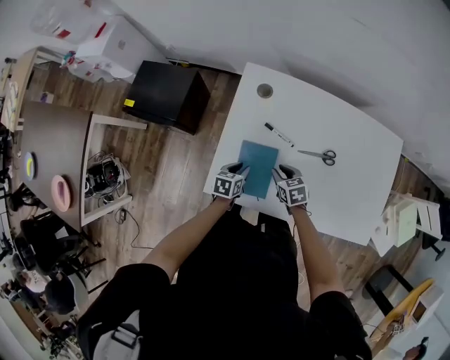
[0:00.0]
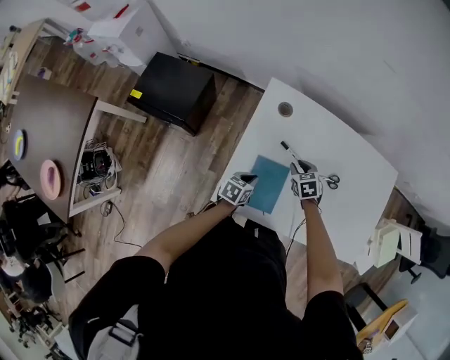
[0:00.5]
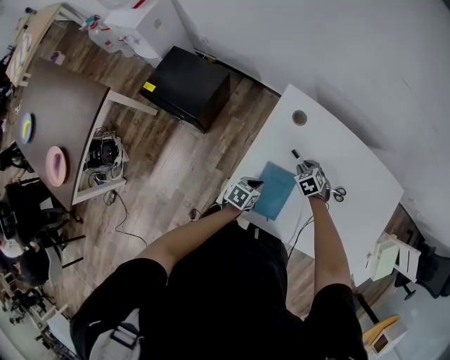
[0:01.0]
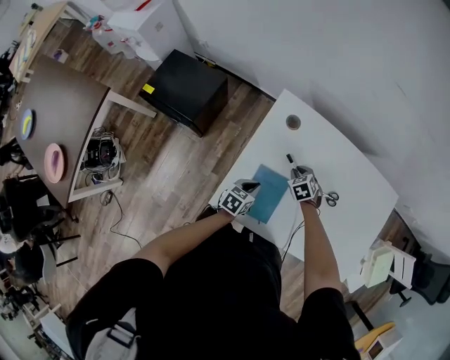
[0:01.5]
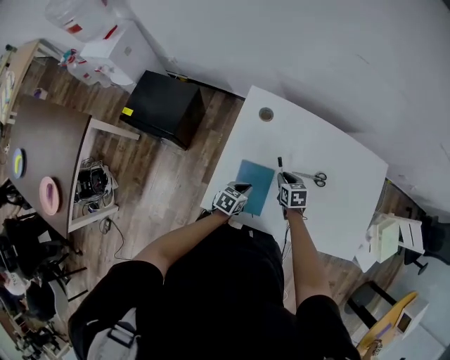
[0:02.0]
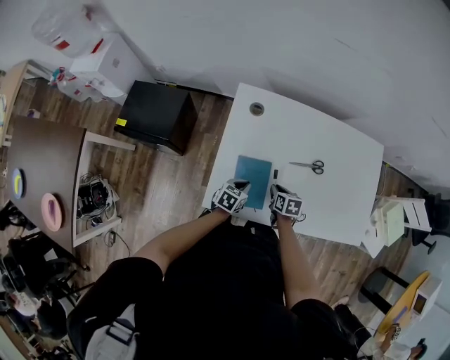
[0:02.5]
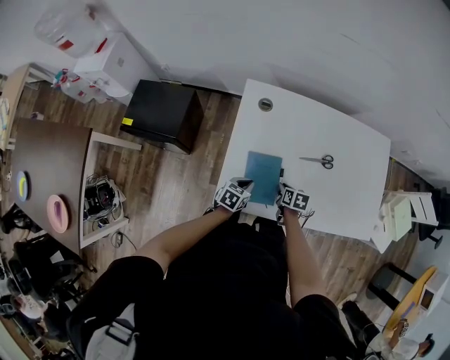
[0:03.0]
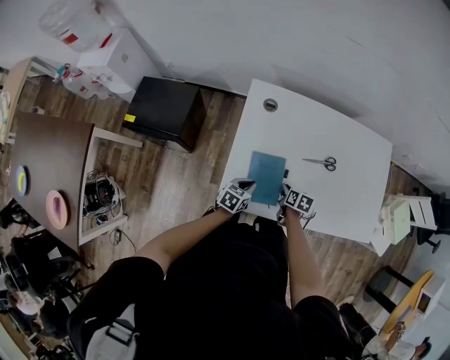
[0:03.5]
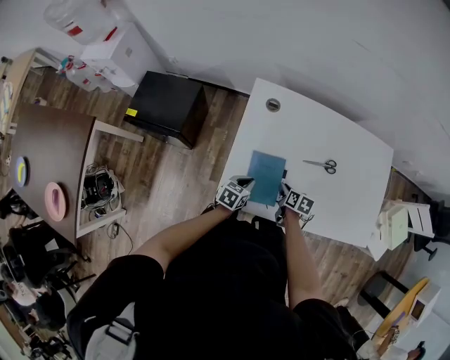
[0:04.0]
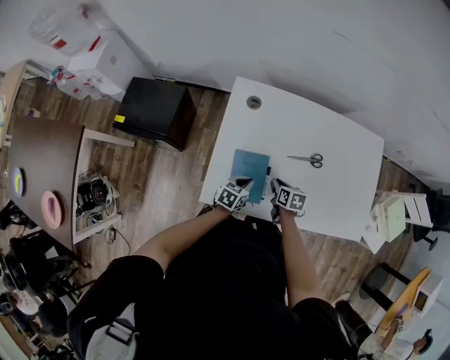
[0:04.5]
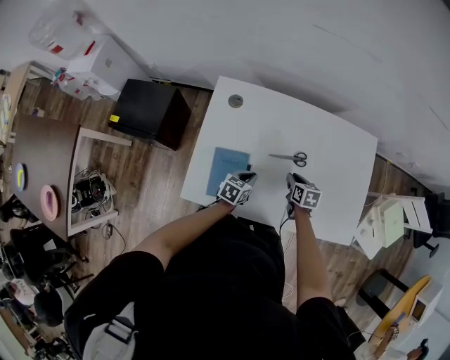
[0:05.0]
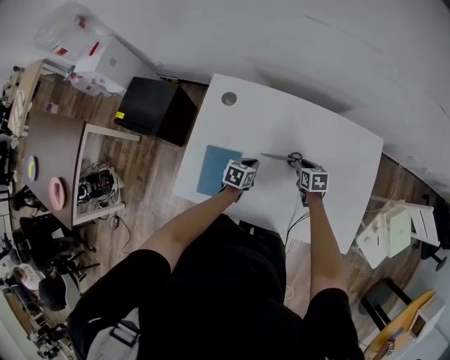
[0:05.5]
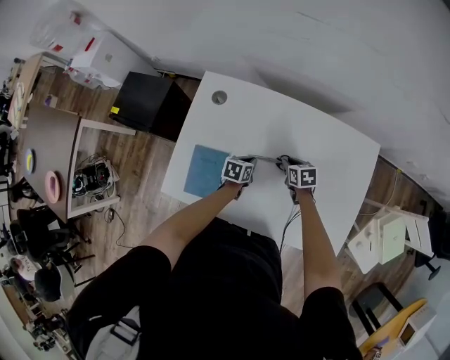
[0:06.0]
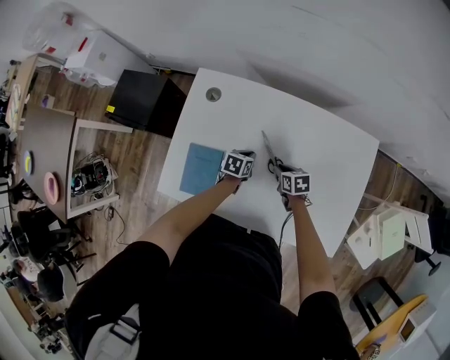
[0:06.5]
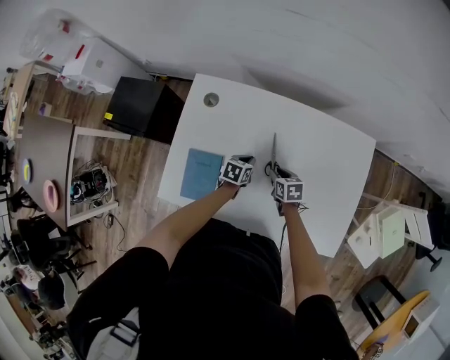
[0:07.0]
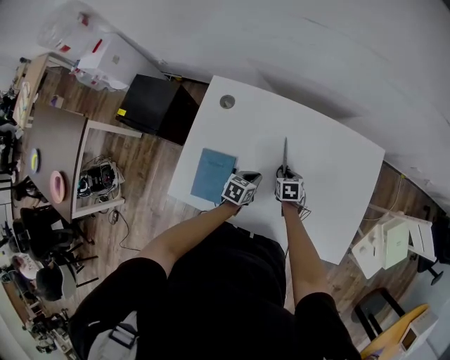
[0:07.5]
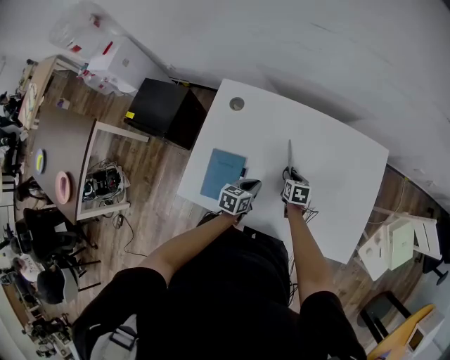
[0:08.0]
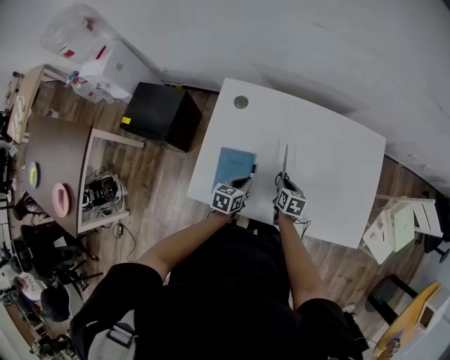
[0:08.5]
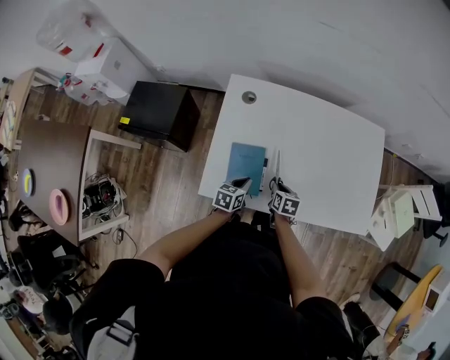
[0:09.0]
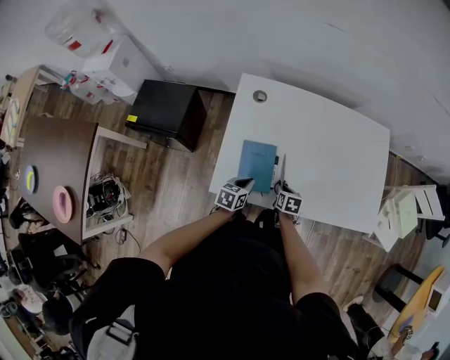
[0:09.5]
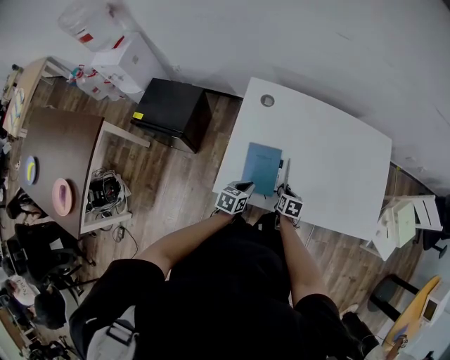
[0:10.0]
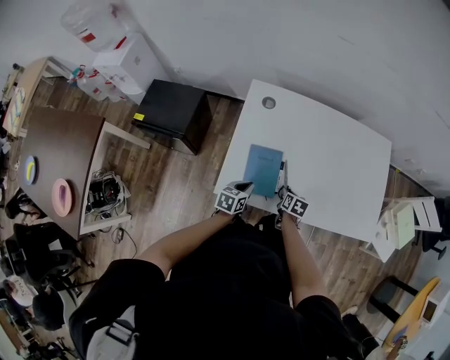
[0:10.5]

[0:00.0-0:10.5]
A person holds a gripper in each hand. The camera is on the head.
0:00.0 to 0:02.0: The right gripper is displaced forward by about 5 cm. The left gripper closes up.
0:02.0 to 0:04.0: The right gripper travels backward by about 10 cm, and rotates about 40 degrees.
0:04.0 to 0:06.5: The grippers both shift to the right and forward by roughly 25 cm. The right gripper turns by some 30 degrees.
0:06.5 to 0:08.5: The right gripper heads backward and to the left, covering some 10 cm, and rotates about 30 degrees. Meanwhile the left gripper shifts about 20 cm backward, to the left and upward.
0:08.5 to 0:10.5: The right gripper travels backward and to the left by some 10 cm. Meanwhile the left gripper travels to the left and backward by roughly 15 cm.

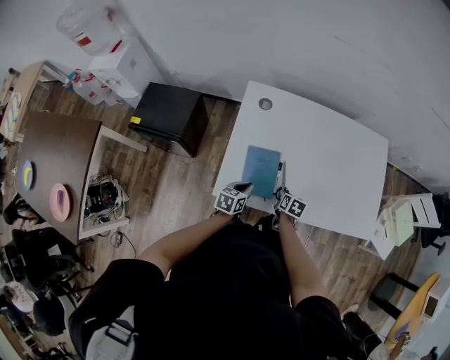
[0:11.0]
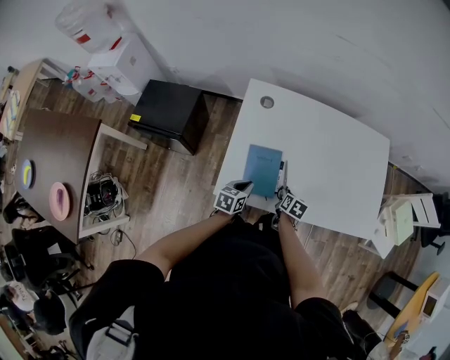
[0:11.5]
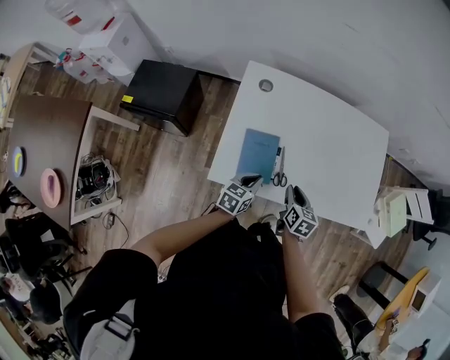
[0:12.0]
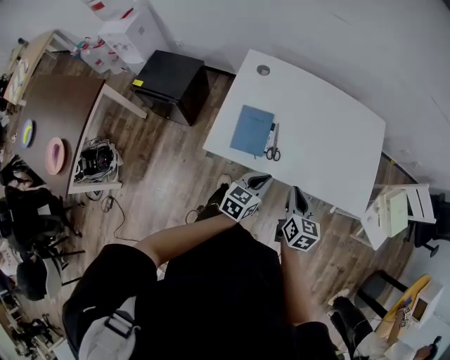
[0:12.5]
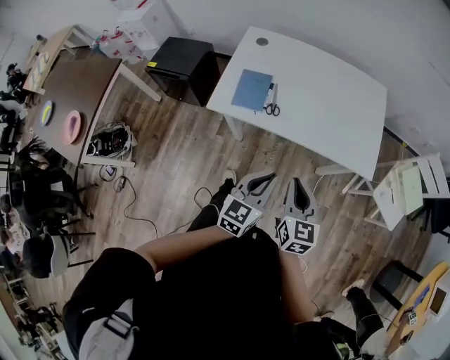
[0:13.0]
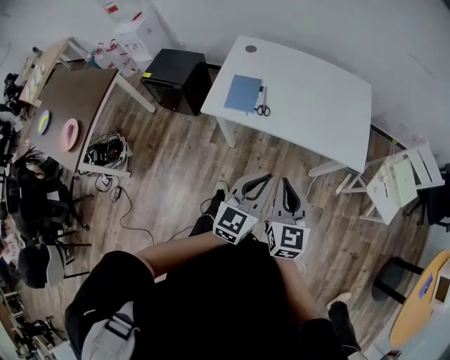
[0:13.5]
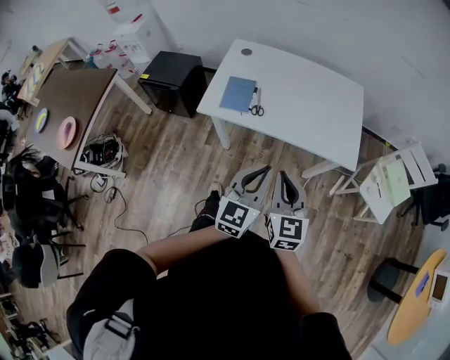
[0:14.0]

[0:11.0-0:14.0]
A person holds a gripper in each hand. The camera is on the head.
0:11.0 to 0:12.5: The right gripper shifts approximately 25 cm upward, backward and to the right, and swivels roughly 30 degrees. Meanwhile the left gripper heads to the right, upward and backward, covering roughly 25 cm.
0:12.5 to 0:14.0: The right gripper moves backward and upward, some 25 cm, and turns by roughly 30 degrees. The left gripper goes approximately 30 cm backward, upward and to the right, and rotates some 30 degrees.

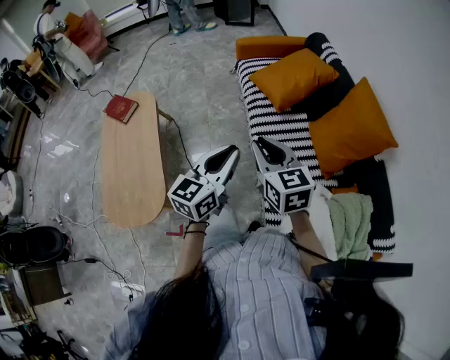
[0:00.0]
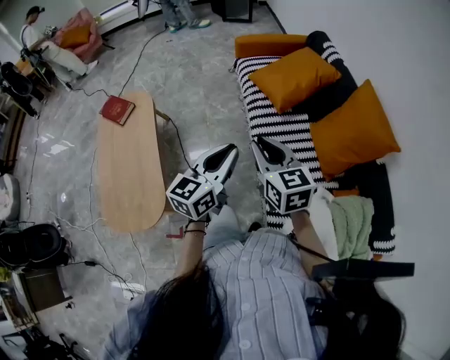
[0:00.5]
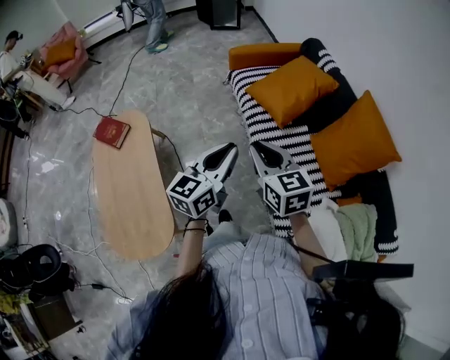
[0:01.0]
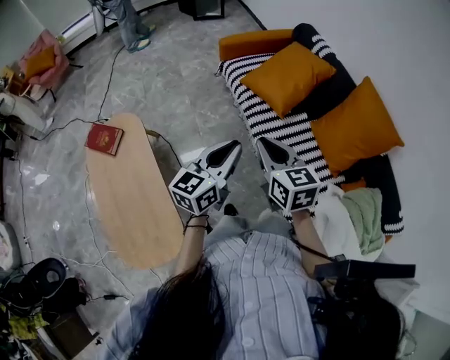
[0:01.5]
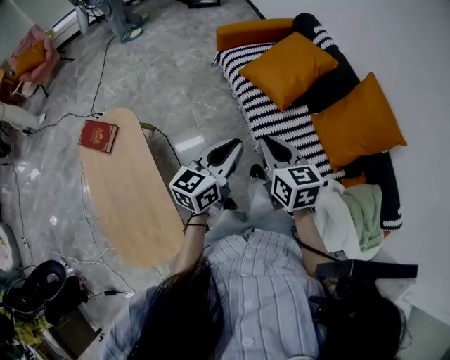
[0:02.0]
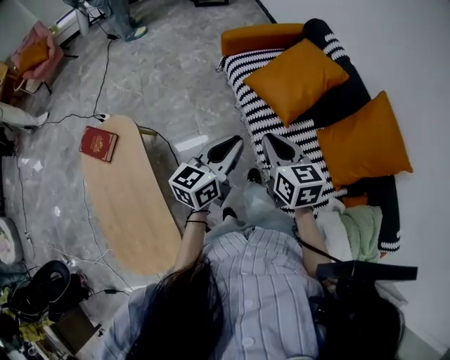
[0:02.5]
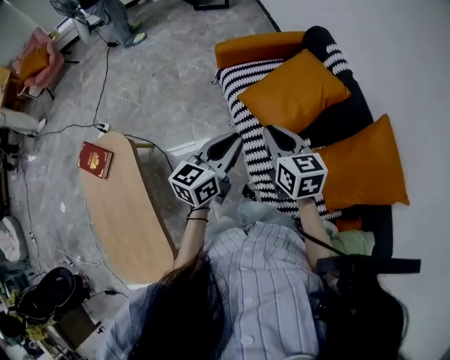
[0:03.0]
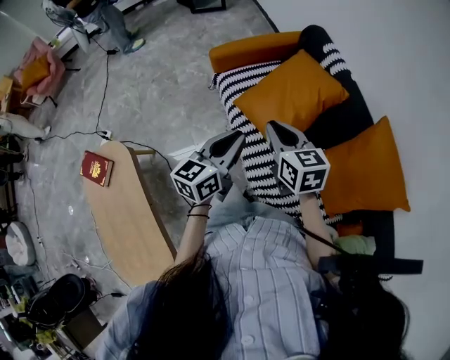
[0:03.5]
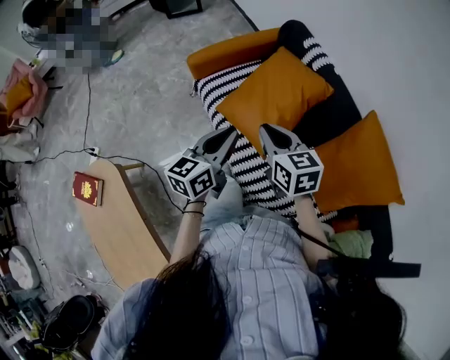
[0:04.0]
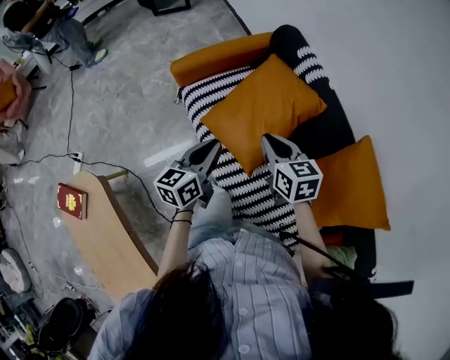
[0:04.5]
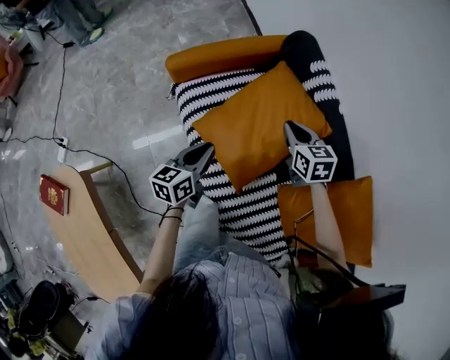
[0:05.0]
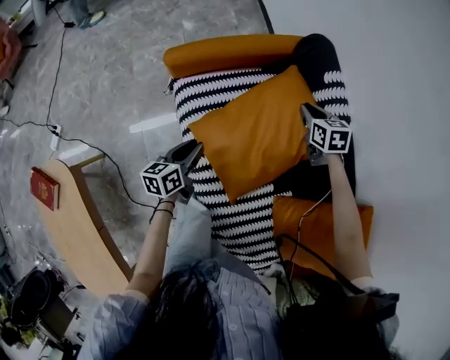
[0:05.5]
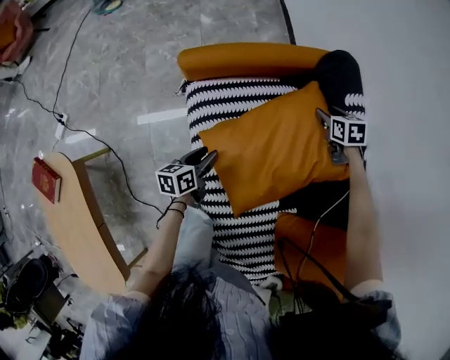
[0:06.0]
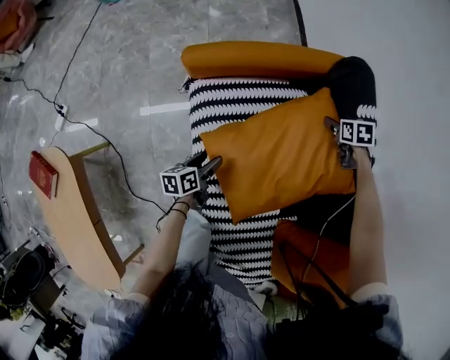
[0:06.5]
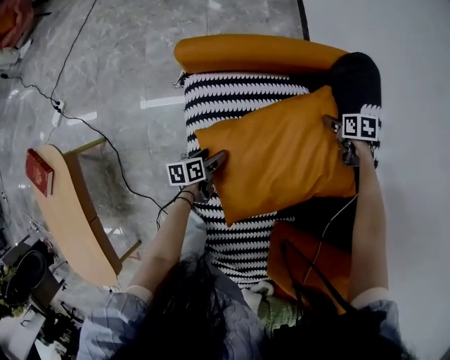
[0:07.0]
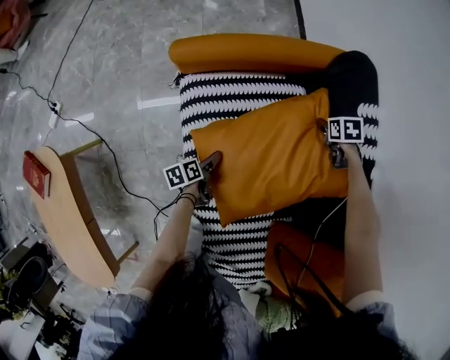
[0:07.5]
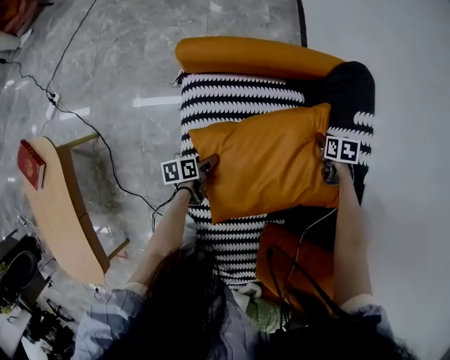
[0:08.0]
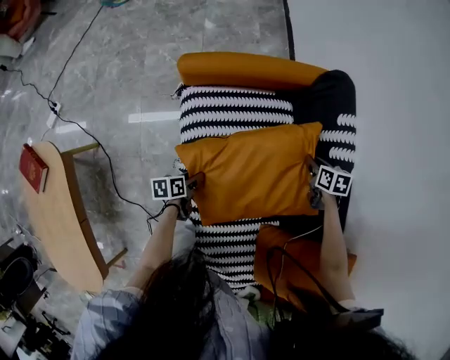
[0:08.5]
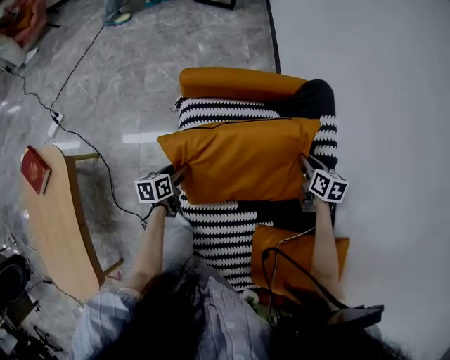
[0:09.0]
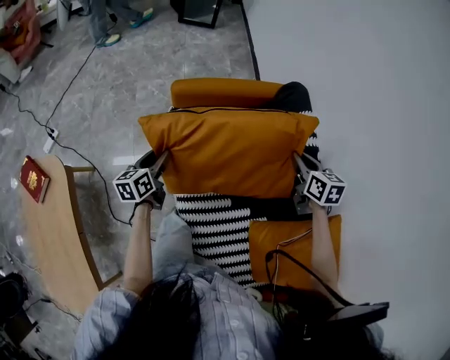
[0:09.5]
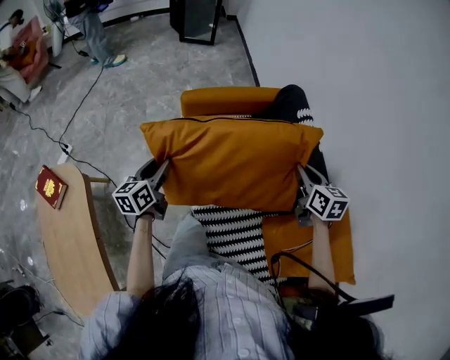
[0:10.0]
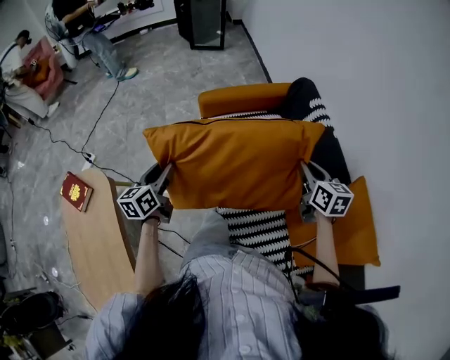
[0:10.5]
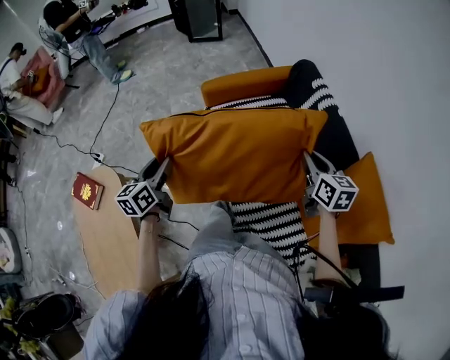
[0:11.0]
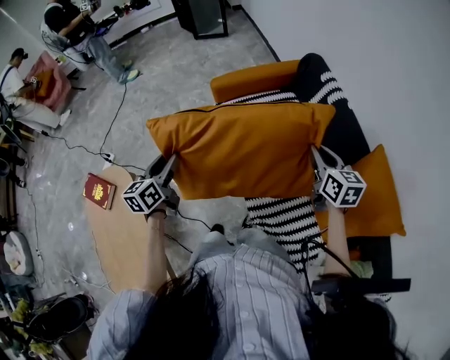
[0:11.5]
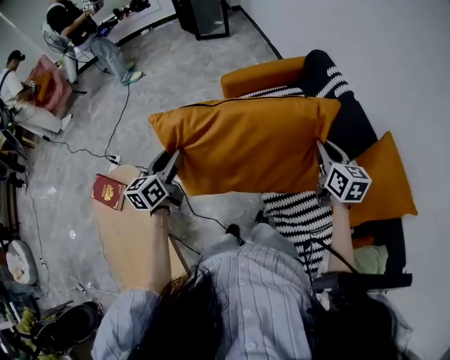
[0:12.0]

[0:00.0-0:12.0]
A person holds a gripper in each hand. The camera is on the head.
0:00.0 to 0:02.0: Both grippers move forward and to the left, approximately 25 cm.
0:02.0 to 0:04.0: Both grippers travel together forward, roughly 35 cm.
0:04.0 to 0:06.0: The left gripper shifts roughly 40 cm downward and forward, rotates about 40 degrees, and opens, while the right gripper goes approximately 60 cm forward and downward, points its fingers some 30 degrees further downward, and opens.
0:06.0 to 0:08.0: The two grippers go approximately 15 cm downward. The left gripper rotates approximately 30 degrees.
0:08.0 to 0:10.0: The right gripper goes about 50 cm upward and backward, and tilts its fingers roughly 40 degrees upward. Meanwhile the left gripper is displaced upward by approximately 40 cm, and rotates some 50 degrees.
0:10.0 to 0:12.0: The right gripper shifts roughly 20 cm backward and to the left; the left gripper moves to the left, backward and upward, about 20 cm.

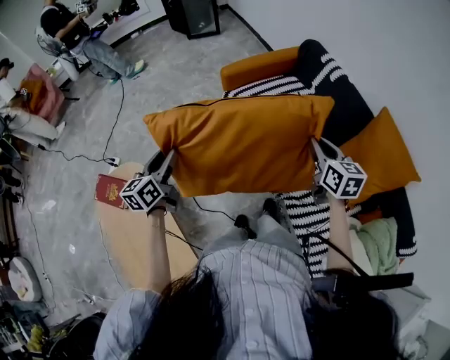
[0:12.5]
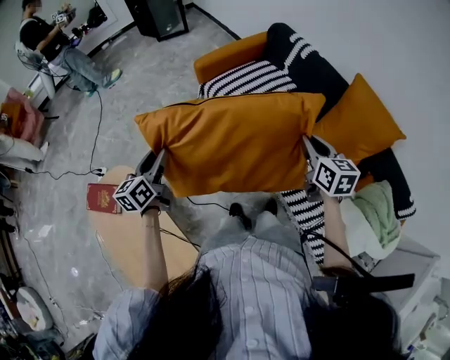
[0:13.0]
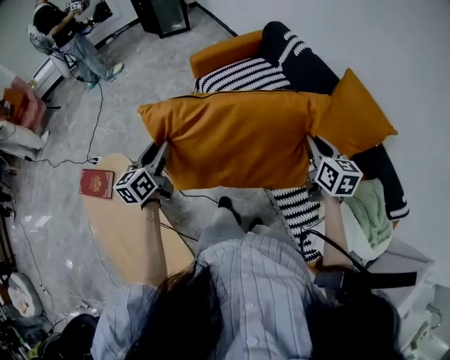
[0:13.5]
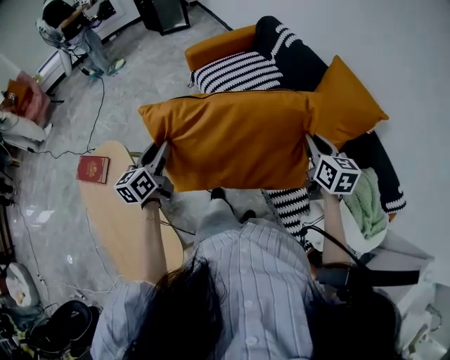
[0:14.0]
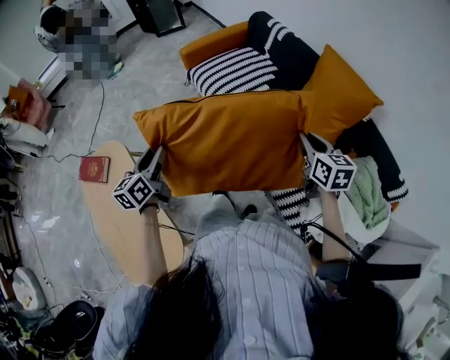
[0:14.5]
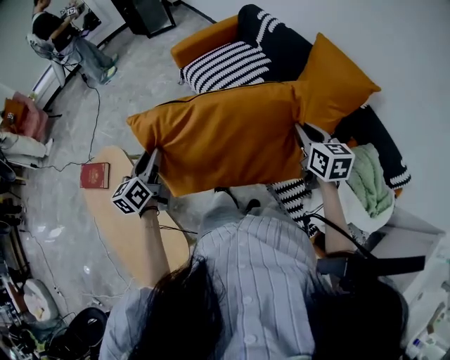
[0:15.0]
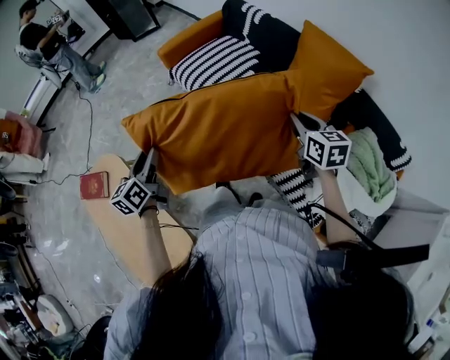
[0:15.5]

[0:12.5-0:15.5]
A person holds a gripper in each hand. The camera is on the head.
0:12.5 to 0:14.0: Both grippers travel together backward and to the right, some 25 cm.
0:14.0 to 0:15.5: The grippers stay close to where they were, moving slightly.
